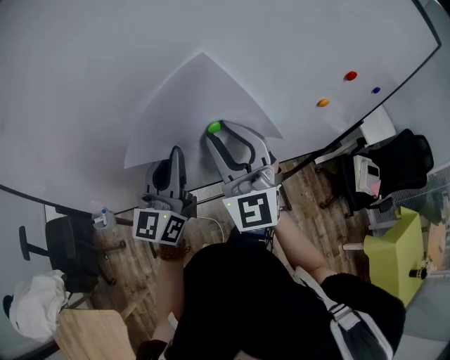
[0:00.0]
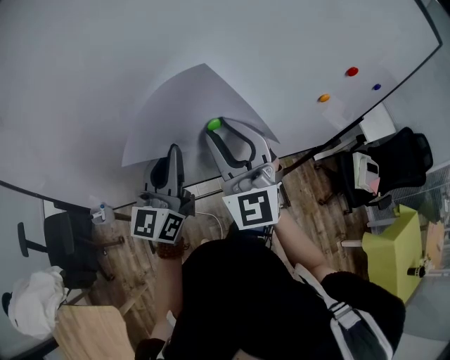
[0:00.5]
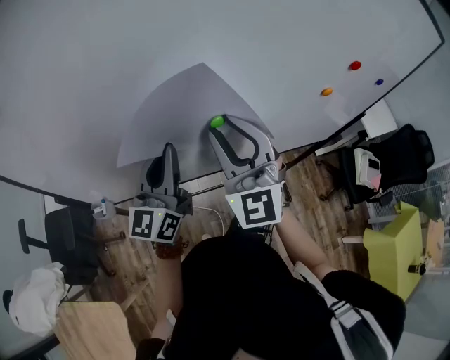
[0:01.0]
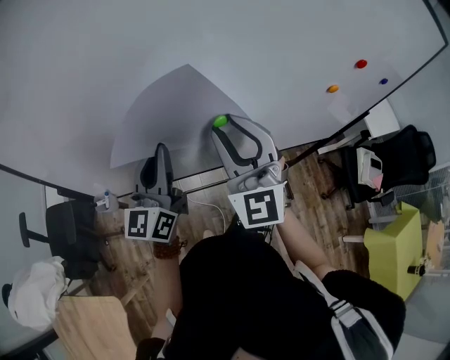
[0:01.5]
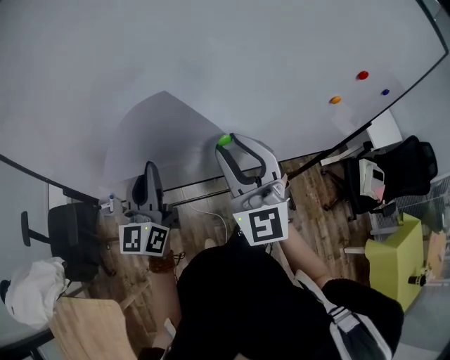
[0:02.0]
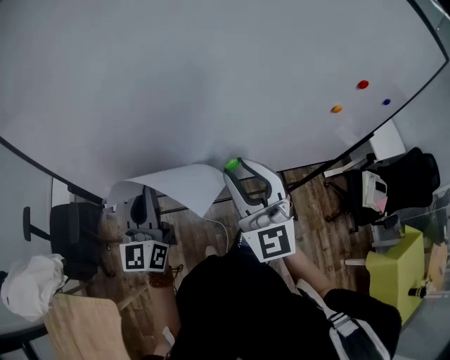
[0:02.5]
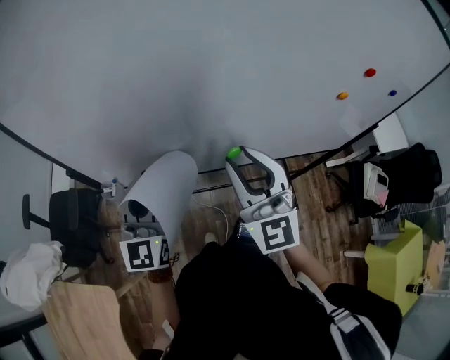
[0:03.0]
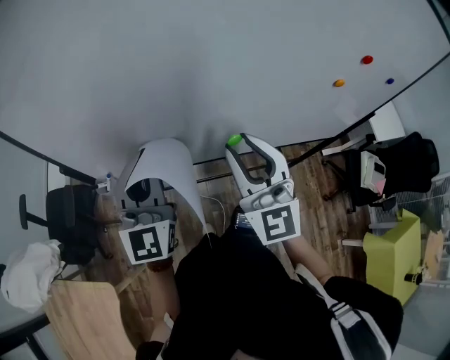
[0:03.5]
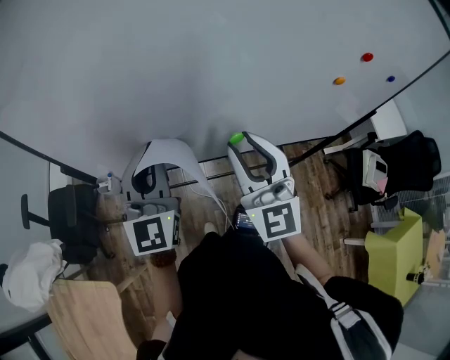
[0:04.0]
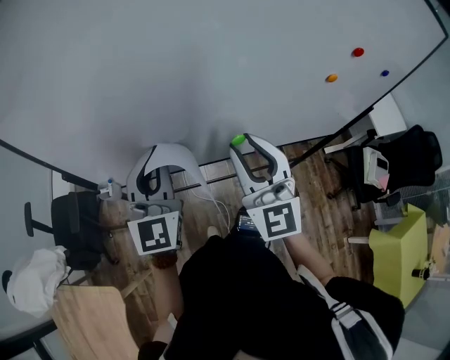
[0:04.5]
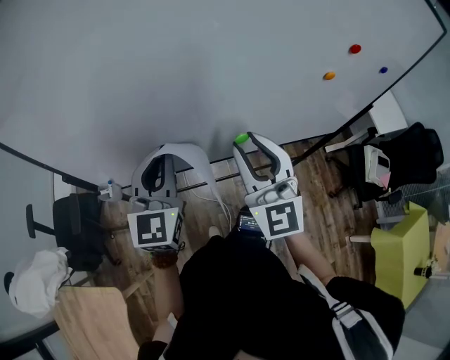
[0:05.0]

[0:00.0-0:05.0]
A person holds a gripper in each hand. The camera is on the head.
0:00.0 to 0:02.5: The left gripper goes approximately 15 cm to the left and backward, and turns by some 20 degrees, while the right gripper shifts approximately 10 cm backward.
0:02.5 to 0:05.0: The left gripper moves to the right, approximately 10 cm, and rotates roughly 20 degrees.

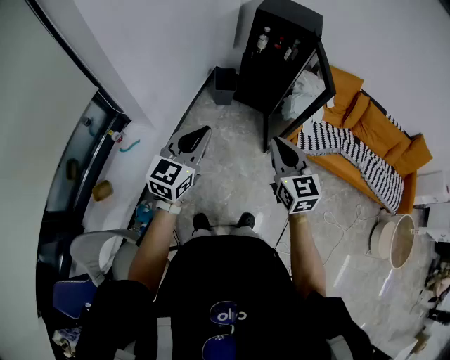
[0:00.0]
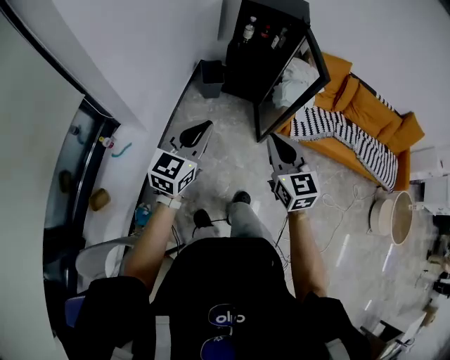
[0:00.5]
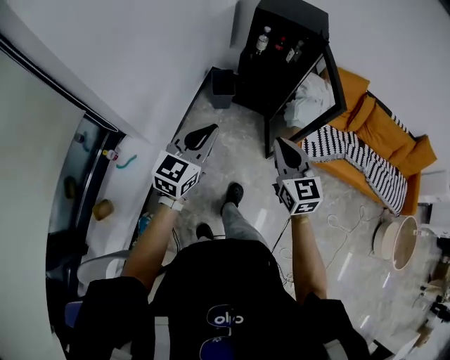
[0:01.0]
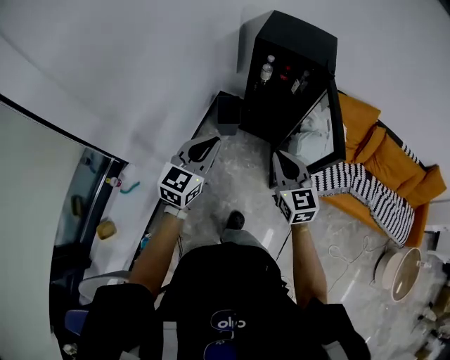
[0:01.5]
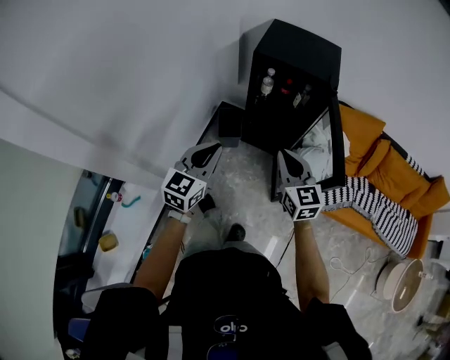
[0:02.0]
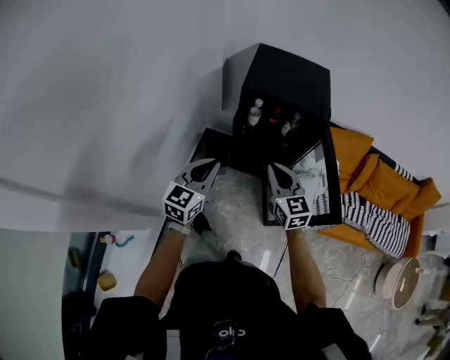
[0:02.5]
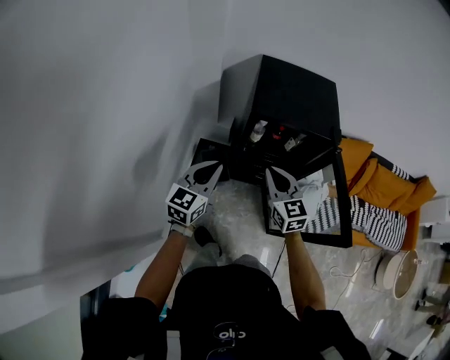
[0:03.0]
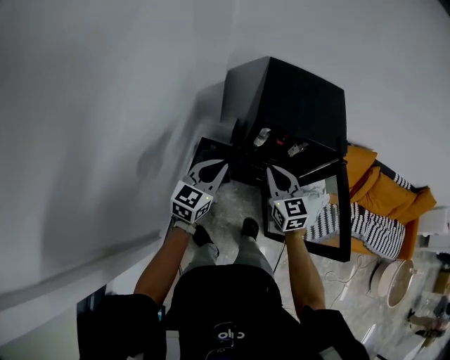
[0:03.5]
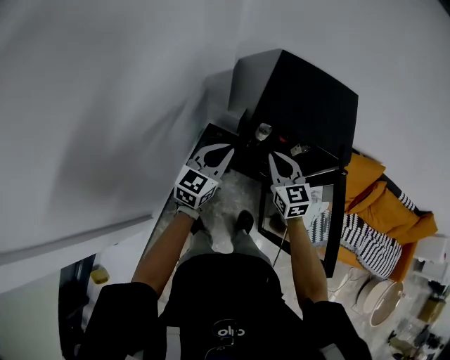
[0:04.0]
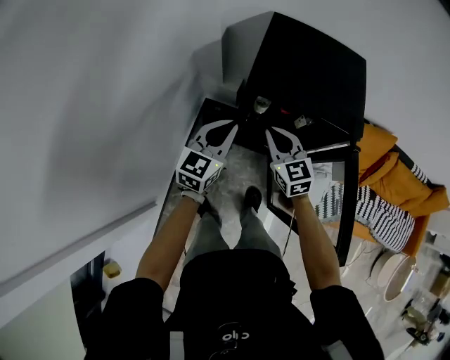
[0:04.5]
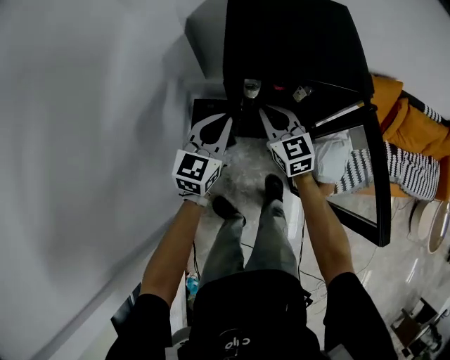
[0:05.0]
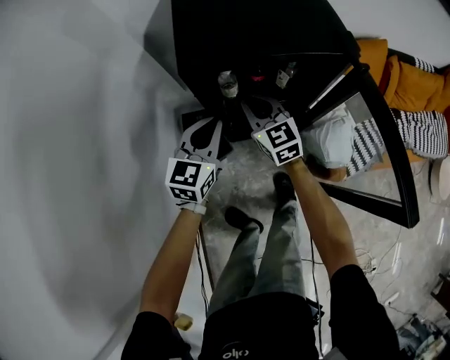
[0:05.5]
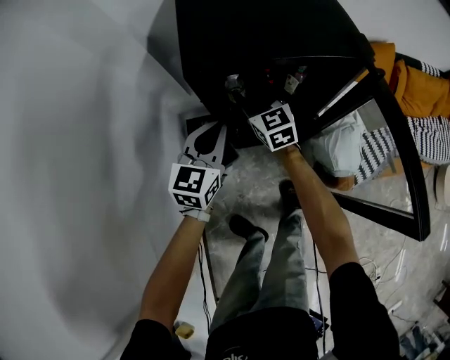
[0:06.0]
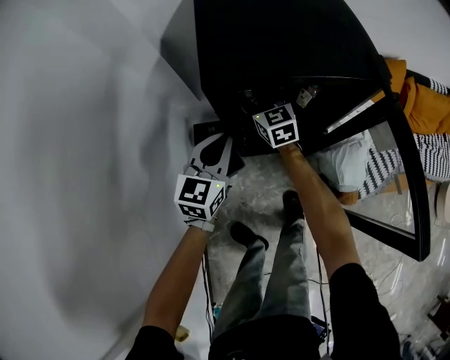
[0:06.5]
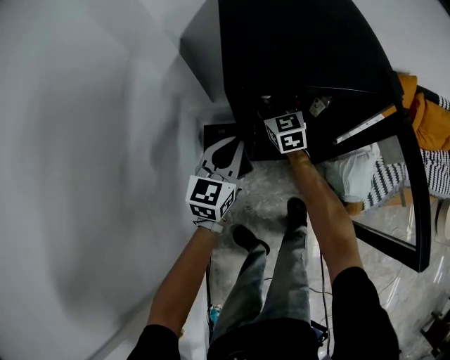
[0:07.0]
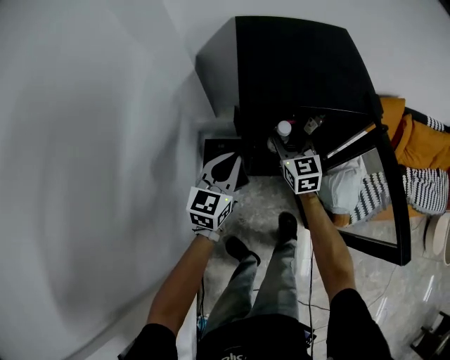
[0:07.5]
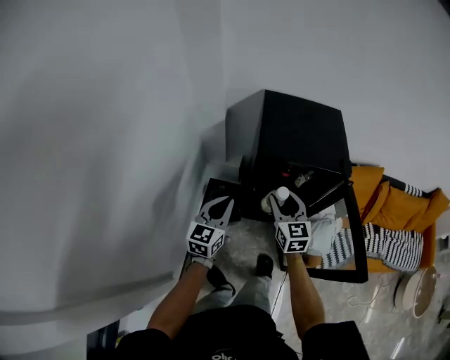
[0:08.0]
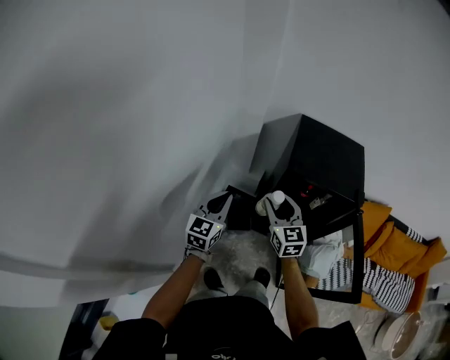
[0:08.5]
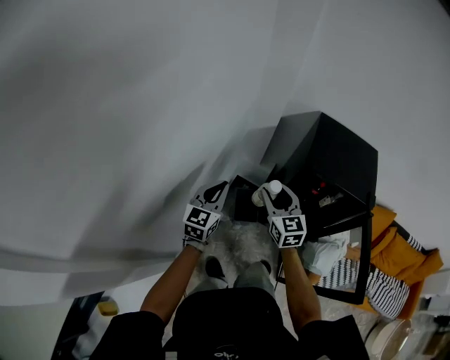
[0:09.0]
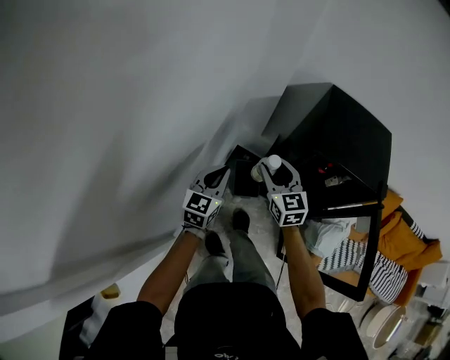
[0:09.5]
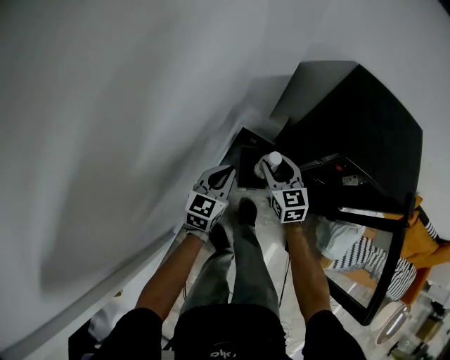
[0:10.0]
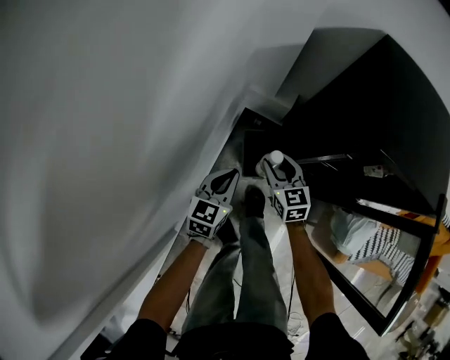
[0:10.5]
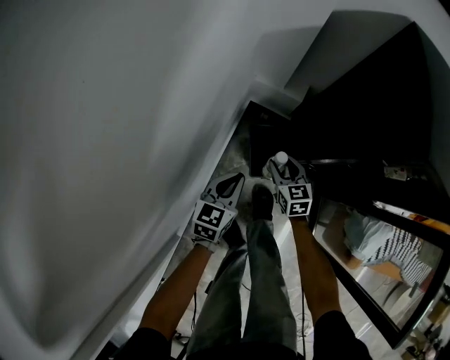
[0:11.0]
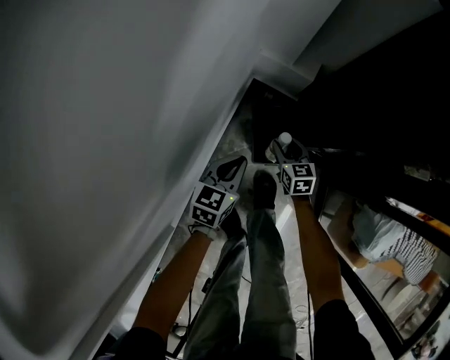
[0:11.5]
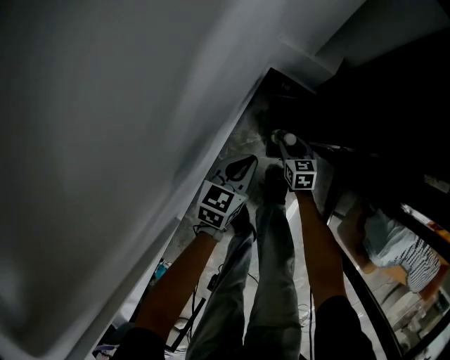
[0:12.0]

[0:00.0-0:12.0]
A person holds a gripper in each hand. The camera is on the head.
0:00.0 to 0:02.0: The two grippers go about 40 cm forward.
0:02.0 to 0:04.0: The two grippers go some 35 cm forward.
0:04.0 to 0:06.0: The two grippers go approximately 20 cm downward and forward. The right gripper opens.
0:06.0 to 0:08.0: The right gripper moves upward and backward, some 25 cm; the left gripper heads upward, backward and to the left, covering some 20 cm.
0:08.0 to 0:10.0: The right gripper travels to the left, downward and forward by about 30 cm, and changes its angle by approximately 20 degrees. The left gripper shifts about 20 cm downward, to the left and forward.
0:10.0 to 0:12.0: The left gripper goes some 30 cm downward. Meanwhile the right gripper moves downward, roughly 50 cm, and turns by some 20 degrees.

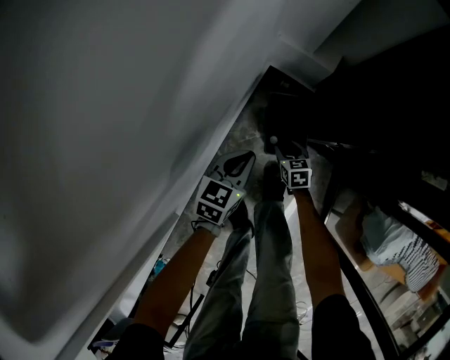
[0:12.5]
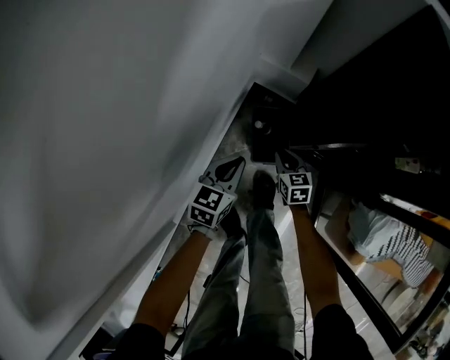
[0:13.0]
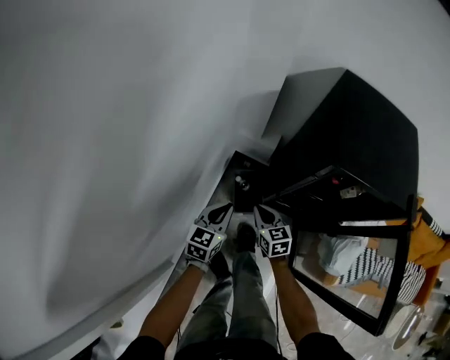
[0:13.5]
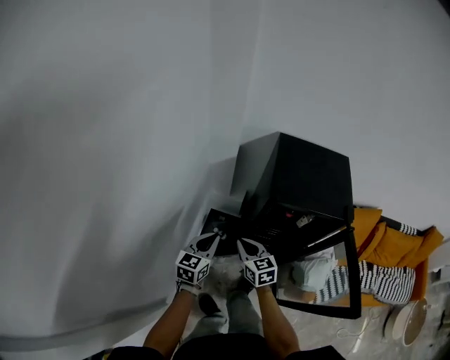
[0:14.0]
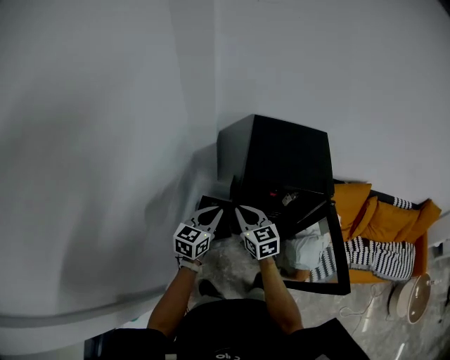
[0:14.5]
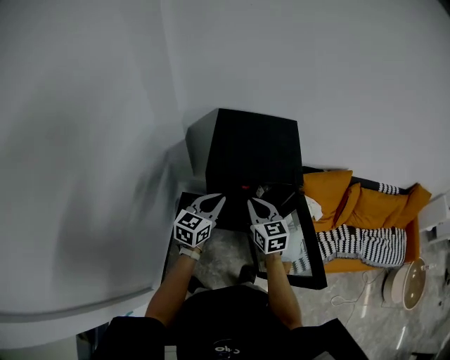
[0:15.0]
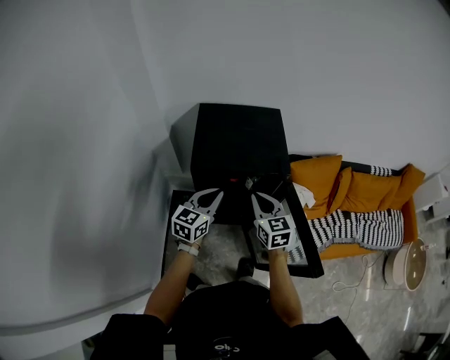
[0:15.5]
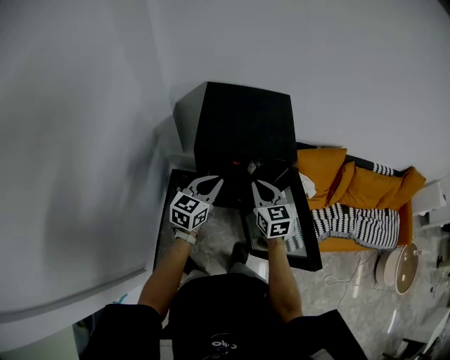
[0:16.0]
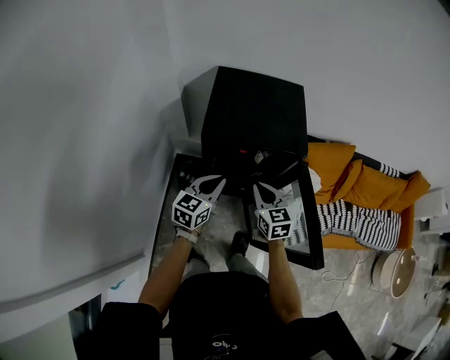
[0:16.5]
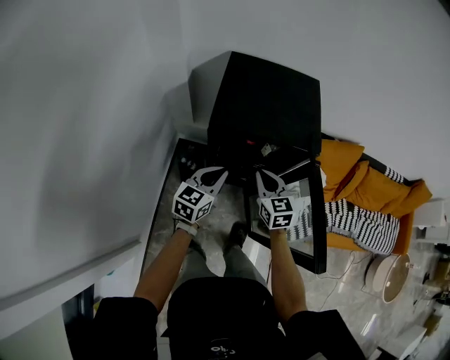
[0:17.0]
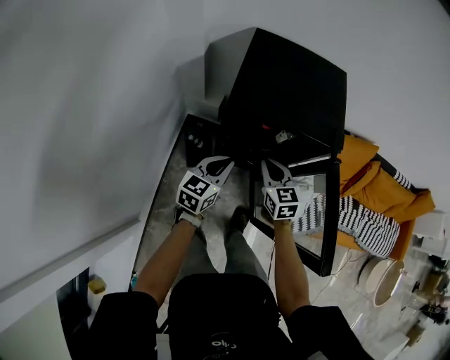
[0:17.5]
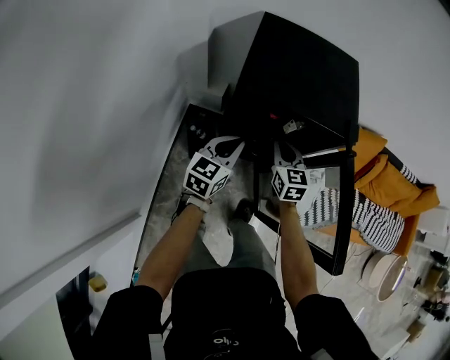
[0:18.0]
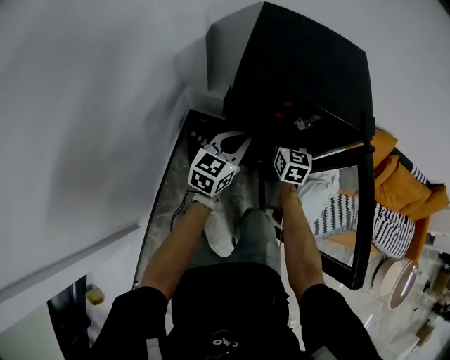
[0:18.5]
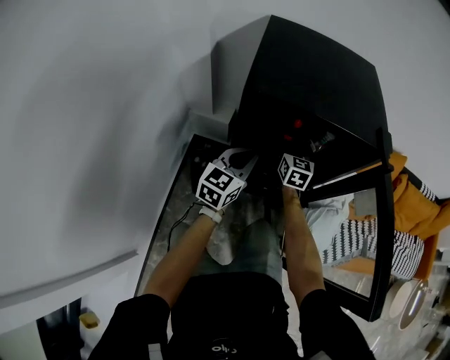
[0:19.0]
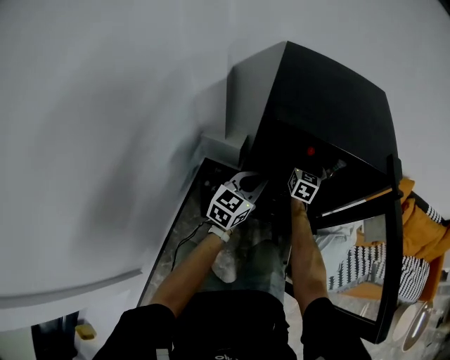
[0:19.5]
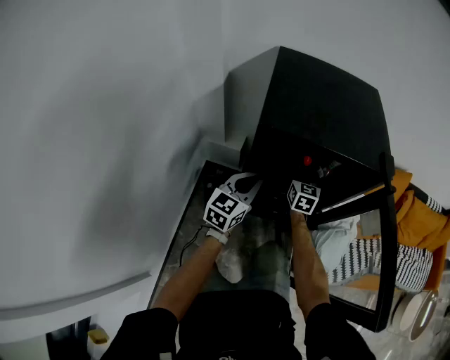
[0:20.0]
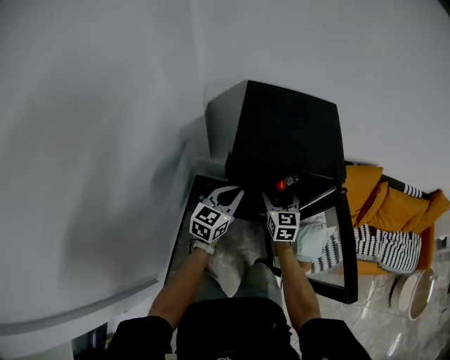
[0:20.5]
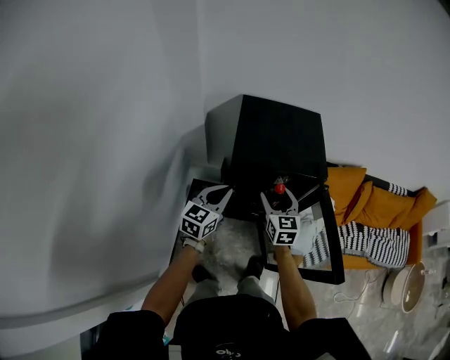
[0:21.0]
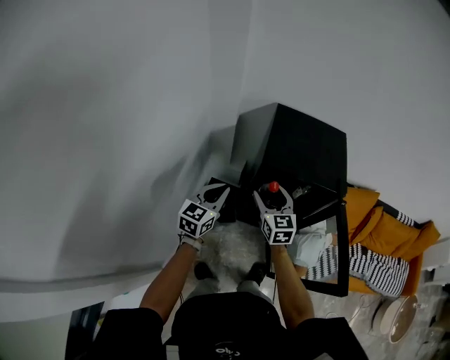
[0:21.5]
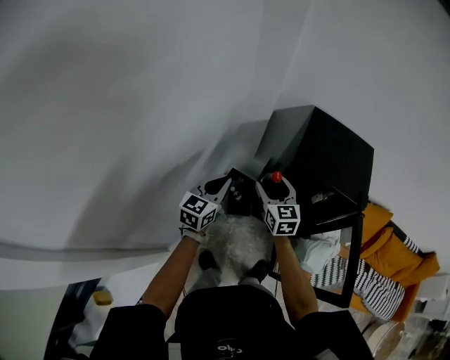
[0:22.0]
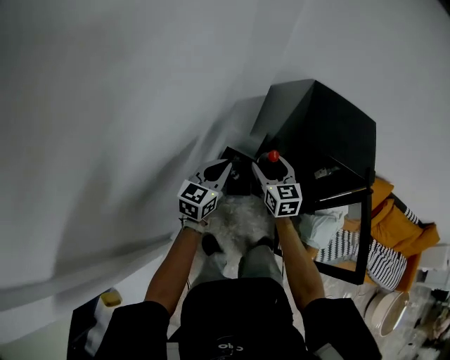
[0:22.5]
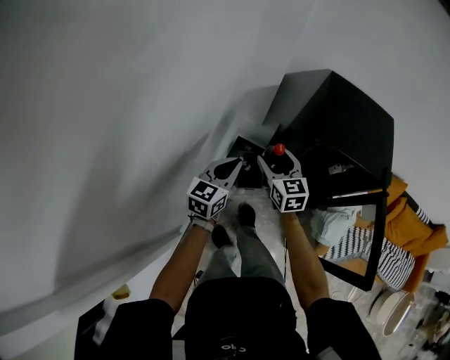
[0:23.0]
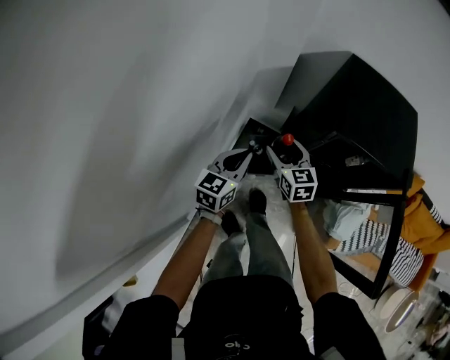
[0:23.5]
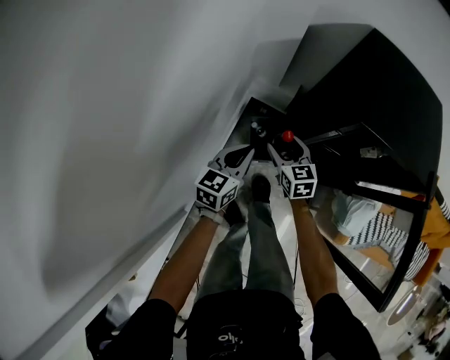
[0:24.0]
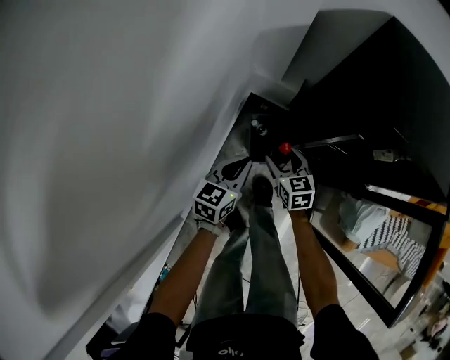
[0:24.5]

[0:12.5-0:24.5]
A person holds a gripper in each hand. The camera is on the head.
0:12.5 to 0:14.5: Both grippers move upward, about 60 cm. The left gripper swivels approximately 20 degrees. Meanwhile the right gripper angles its fingers upward, by approximately 30 degrees, and closes.
0:14.5 to 0:16.5: The grippers both shift to the right by roughly 20 cm.
0:16.5 to 0:18.5: The left gripper goes roughly 15 cm downward and forward. The right gripper shifts some 25 cm downward and forward, and opens.
0:18.5 to 0:20.5: Both grippers move upward, approximately 10 cm. The right gripper opens up.
0:20.5 to 0:22.5: The left gripper is displaced to the left and backward by approximately 25 cm; the right gripper shifts about 30 cm to the left and upward, and swivels approximately 20 degrees.
0:22.5 to 0:24.5: Both grippers move downward, some 35 cm.
